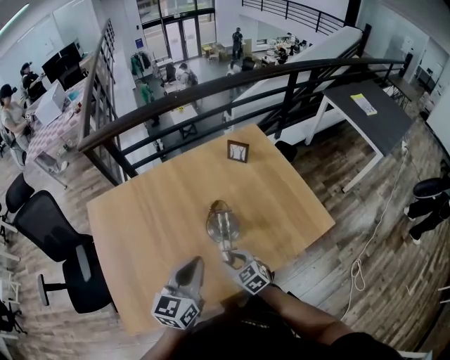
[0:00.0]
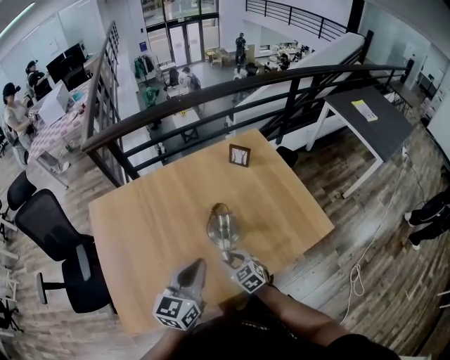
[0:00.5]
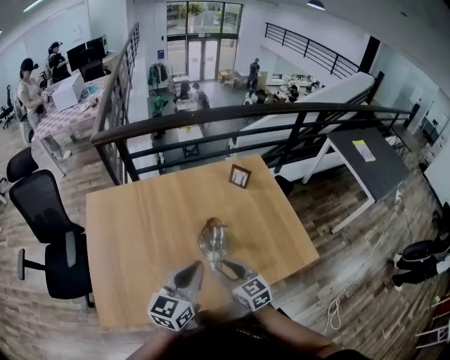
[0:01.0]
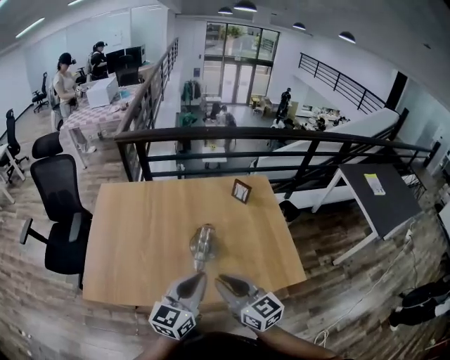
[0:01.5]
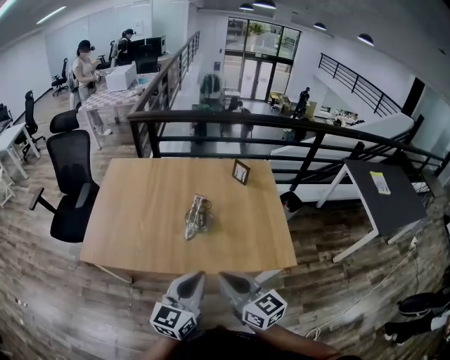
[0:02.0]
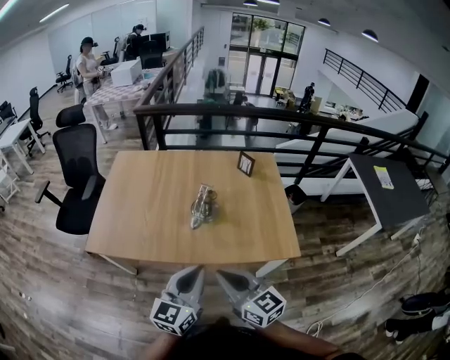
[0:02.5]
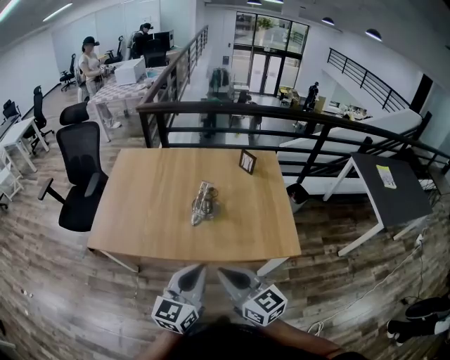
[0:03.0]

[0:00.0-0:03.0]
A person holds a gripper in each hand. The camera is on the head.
0:00.0 to 0:01.5: The left gripper shifts about 15 cm to the right, backward and upward. The right gripper shifts roughly 25 cm upward, tips its fingers upward by approximately 30 degrees, and closes up.
0:01.5 to 0:03.0: Both grippers move backward, about 15 cm.

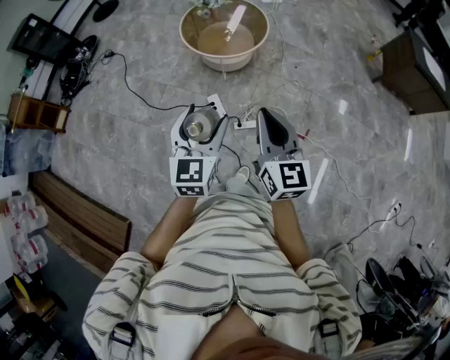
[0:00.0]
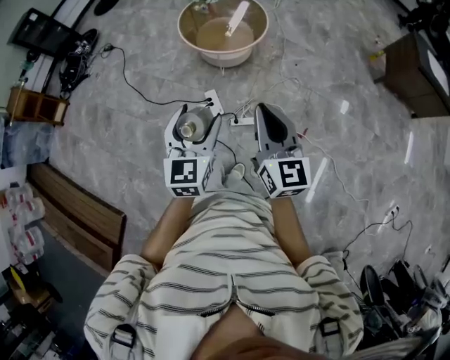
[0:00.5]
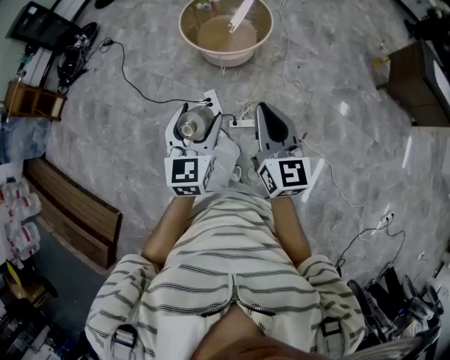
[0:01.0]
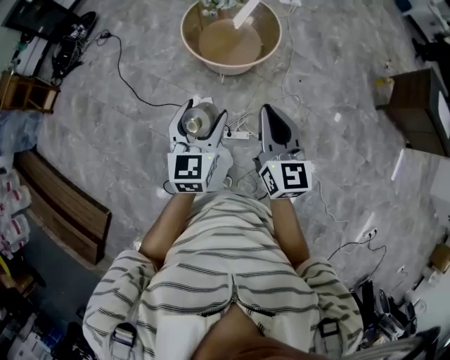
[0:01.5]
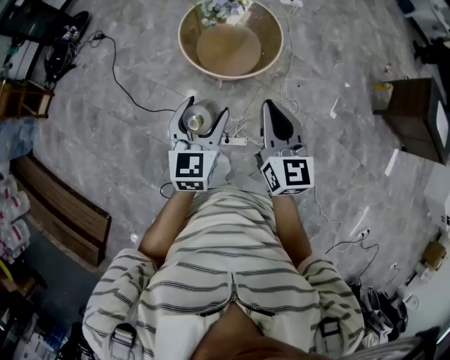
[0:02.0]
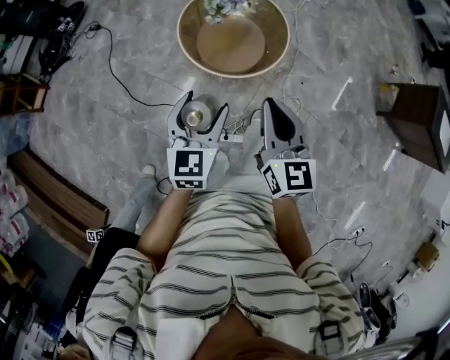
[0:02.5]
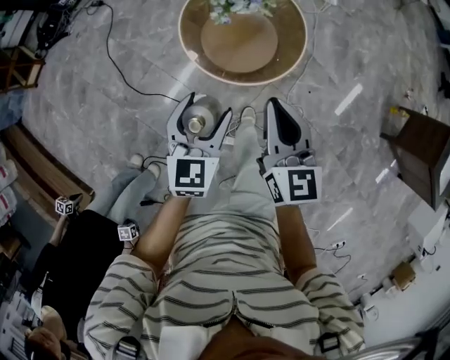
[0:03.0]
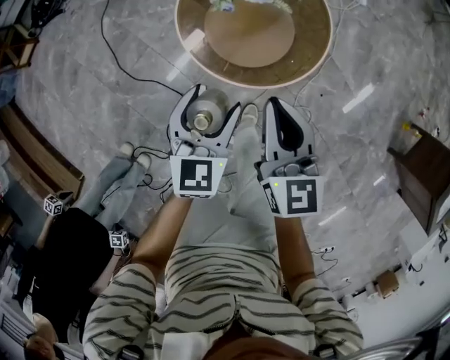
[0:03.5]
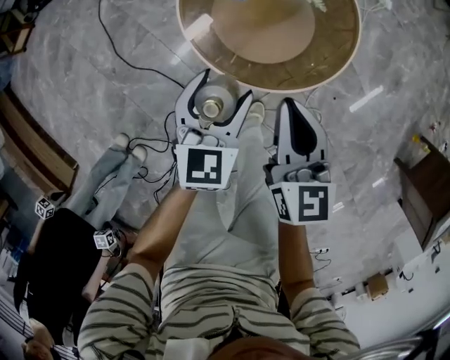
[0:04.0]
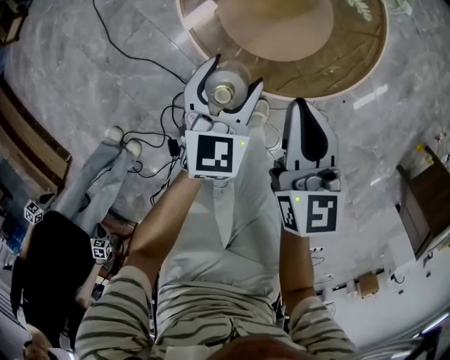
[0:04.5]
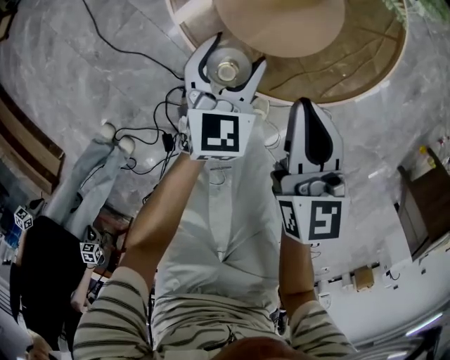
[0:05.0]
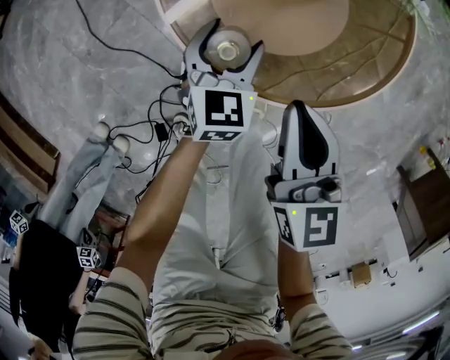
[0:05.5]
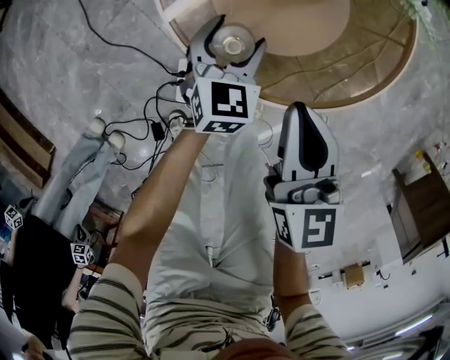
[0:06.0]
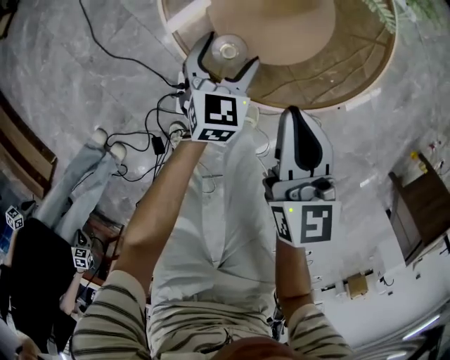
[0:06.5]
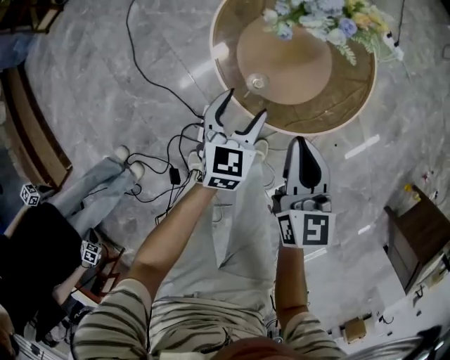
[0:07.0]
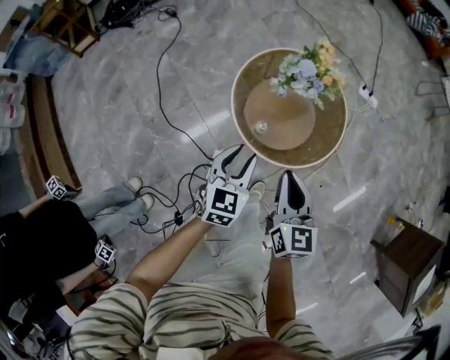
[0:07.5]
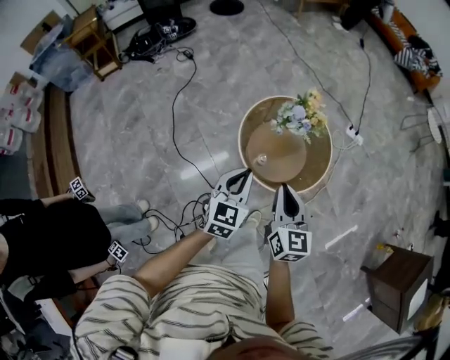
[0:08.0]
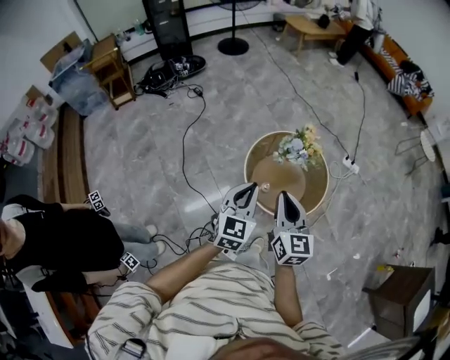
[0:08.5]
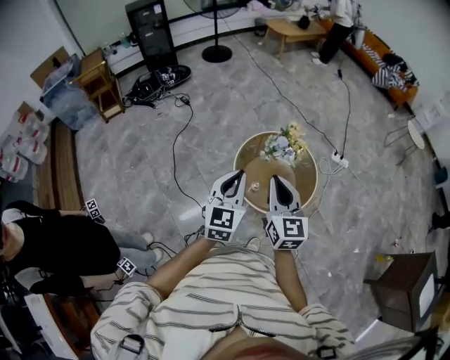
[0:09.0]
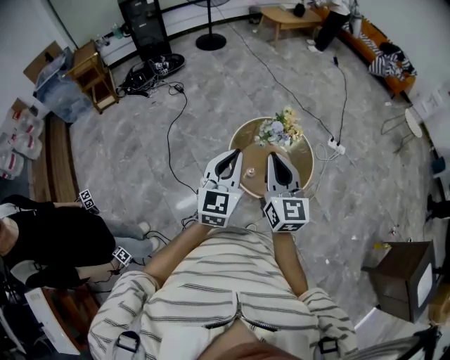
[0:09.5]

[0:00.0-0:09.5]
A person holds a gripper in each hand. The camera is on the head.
0:00.0 to 0:02.0: The two grippers go roughly 30 cm forward.
0:02.0 to 0:04.0: Both grippers move downward and forward, approximately 40 cm. The right gripper turns by about 20 degrees.
0:04.0 to 0:05.5: Both grippers move downward, approximately 20 cm.
0:05.5 to 0:07.5: Both grippers move upward, about 30 cm. The left gripper closes its fingers.
0:07.5 to 0:09.5: The grippers both shift upward by about 30 cm. The right gripper swivels roughly 20 degrees. Meanwhile the left gripper rotates about 30 degrees, and closes its fingers.

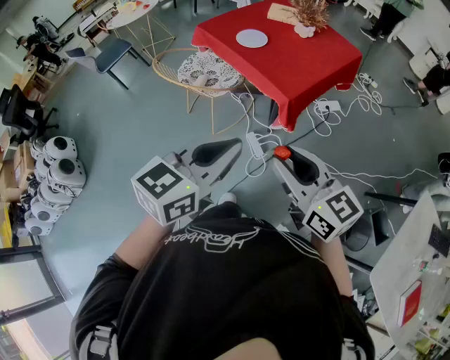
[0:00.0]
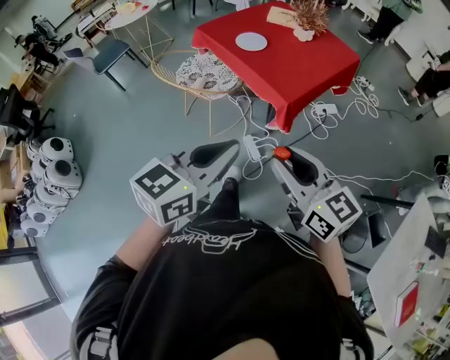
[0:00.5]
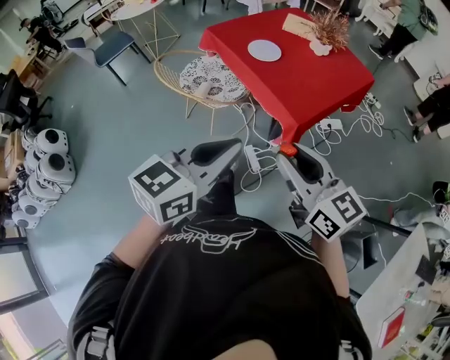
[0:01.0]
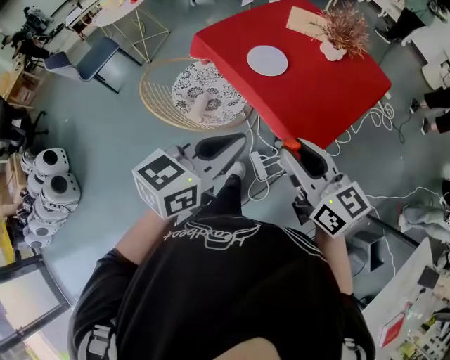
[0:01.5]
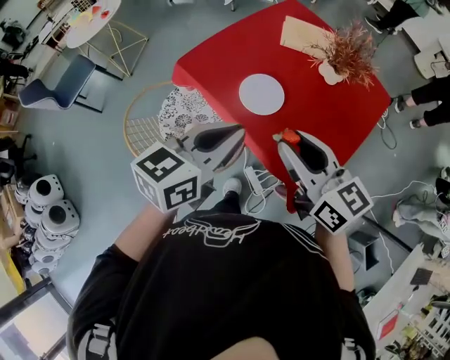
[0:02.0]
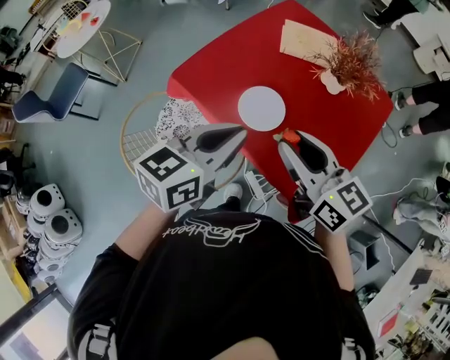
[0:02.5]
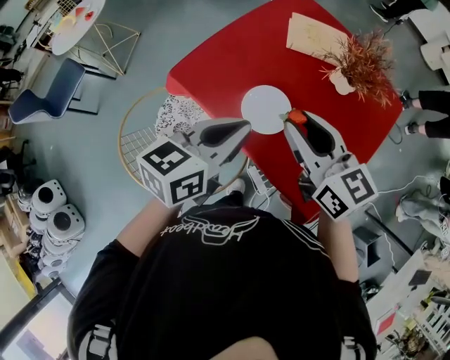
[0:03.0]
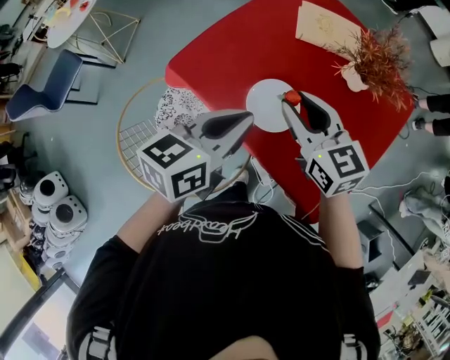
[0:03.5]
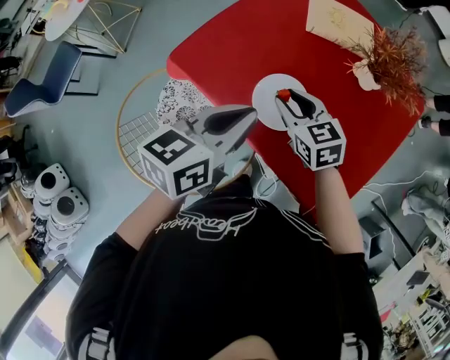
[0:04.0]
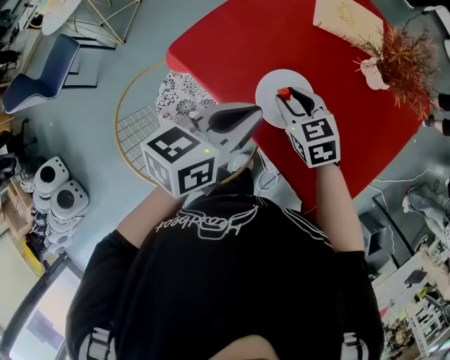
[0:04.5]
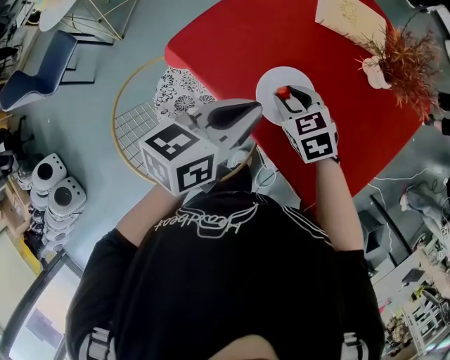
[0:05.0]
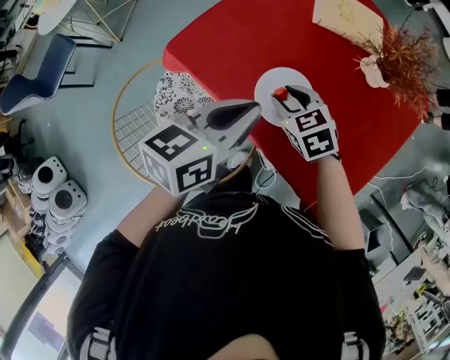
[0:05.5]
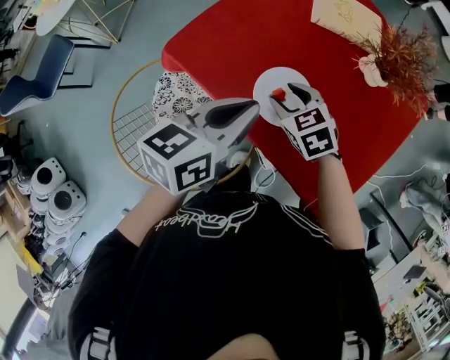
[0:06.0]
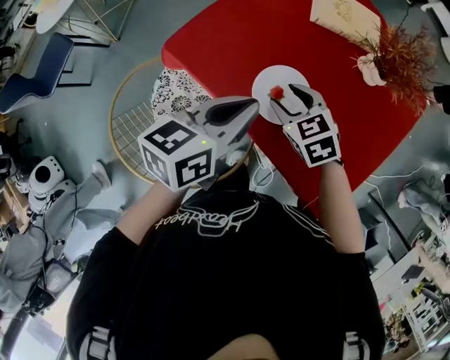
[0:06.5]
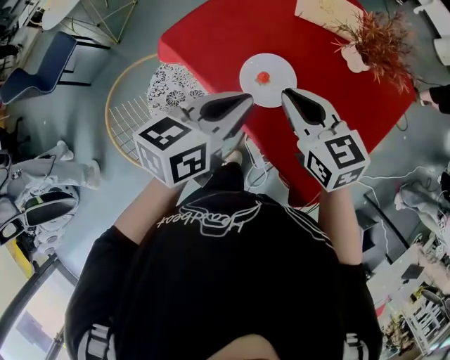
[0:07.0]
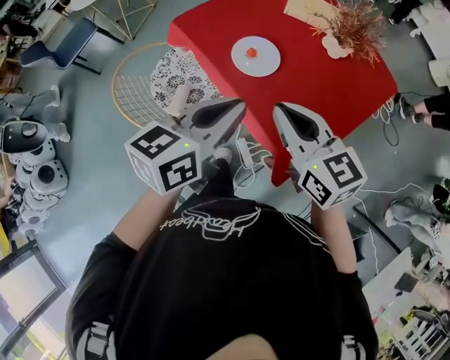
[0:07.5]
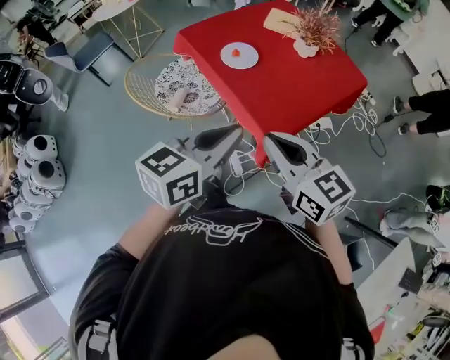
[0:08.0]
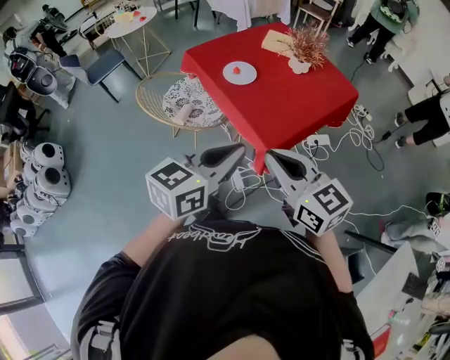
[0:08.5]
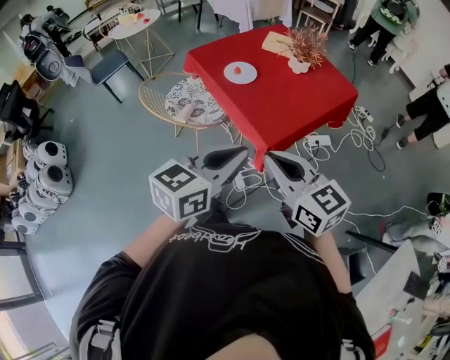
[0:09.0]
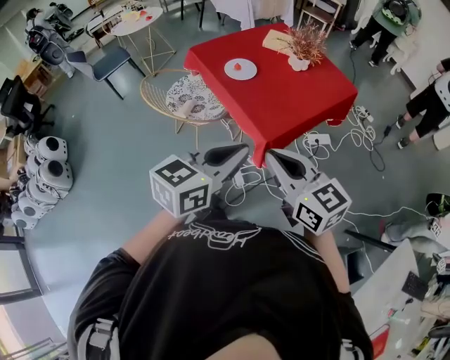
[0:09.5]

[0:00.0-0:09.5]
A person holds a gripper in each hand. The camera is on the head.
0:00.0 to 0:02.0: The pair of grippers is taken forward, some 50 cm.
0:02.0 to 0:04.0: The right gripper travels downward and forward by roughly 30 cm, and changes its angle by roughly 30 degrees, while the left gripper shifts roughly 15 cm forward and downward.
0:04.0 to 0:05.5: The grippers stay close to where they were, moving slightly.
0:05.5 to 0:07.5: The left gripper heads backward and upward, covering roughly 20 cm. The right gripper shifts about 30 cm backward and upward, tips its fingers upward by some 30 degrees, and closes.
0:07.5 to 0:09.5: Both grippers travel together backward, approximately 30 cm.

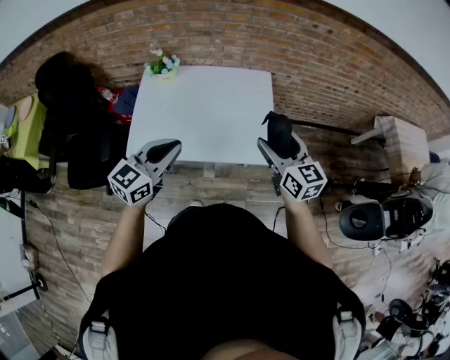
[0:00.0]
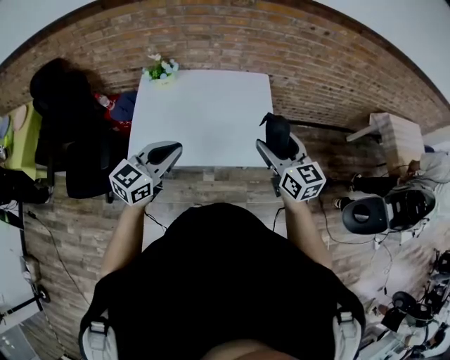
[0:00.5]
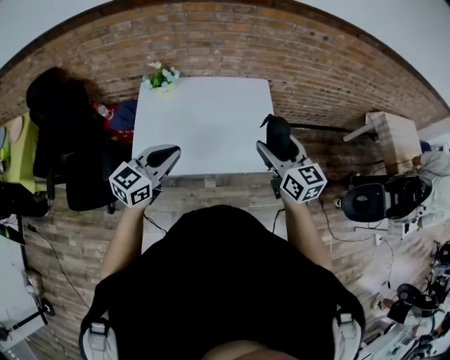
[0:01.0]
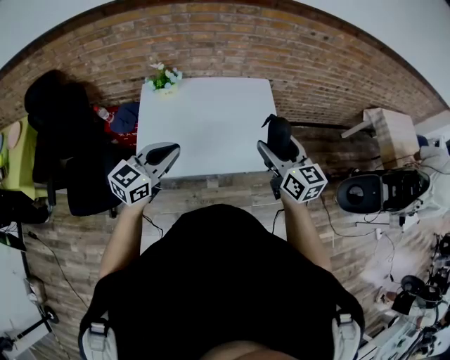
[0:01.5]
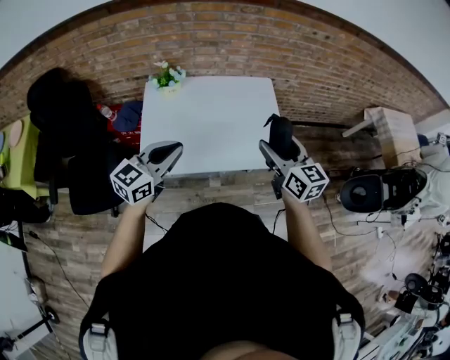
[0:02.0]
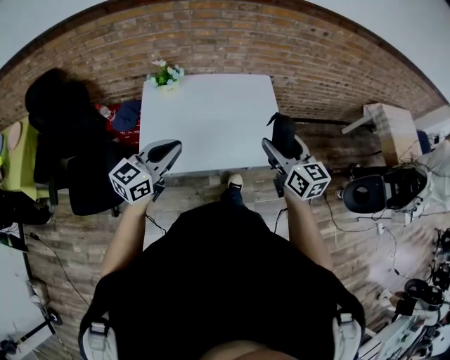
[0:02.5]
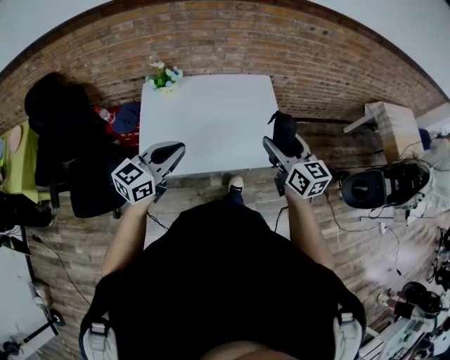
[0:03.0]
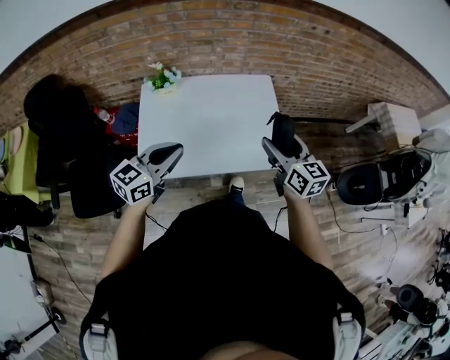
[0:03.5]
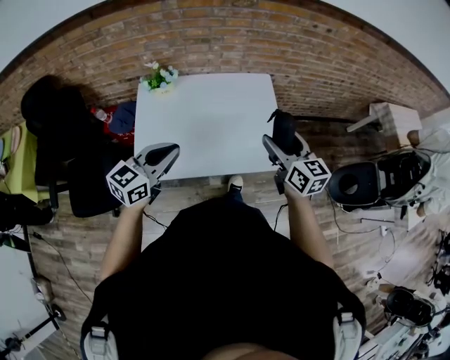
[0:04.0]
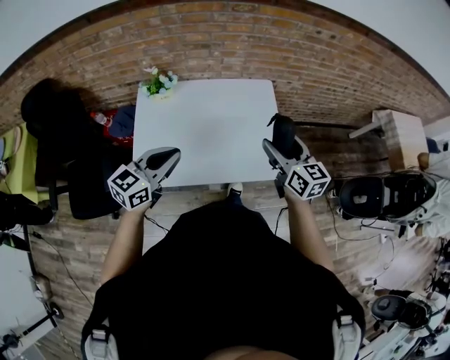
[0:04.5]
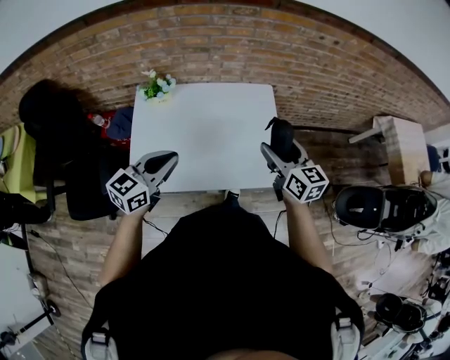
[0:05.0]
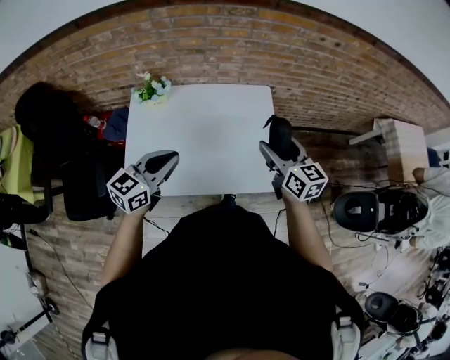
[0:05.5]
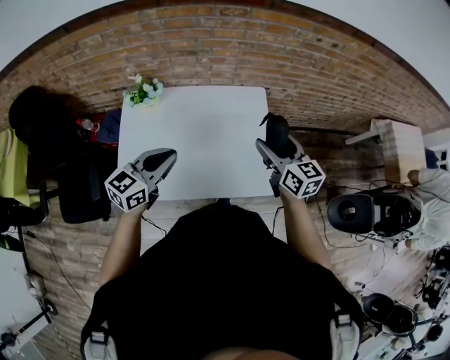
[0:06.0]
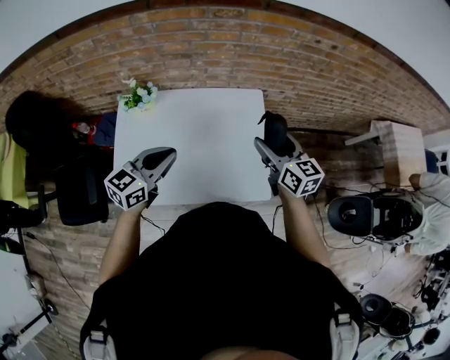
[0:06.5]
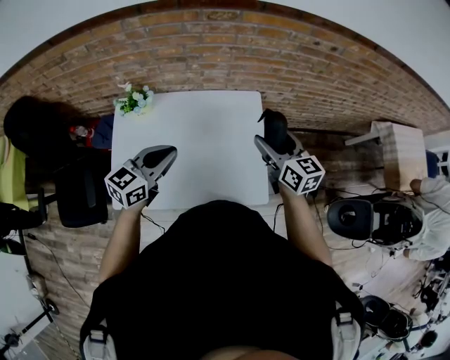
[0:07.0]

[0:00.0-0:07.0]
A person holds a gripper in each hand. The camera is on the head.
0:00.0 to 0:02.0: Both grippers move to the left, approximately 10 cm.
0:02.0 to 0:03.5: The right gripper ends up roughly 5 cm from where it was.
0:03.5 to 0:05.0: The grippers both shift forward by roughly 10 cm.
0:05.0 to 0:07.0: The left gripper is displaced forward and to the right by about 15 cm; the right gripper travels forward by roughly 15 cm.
